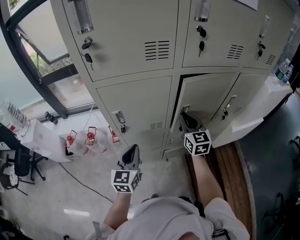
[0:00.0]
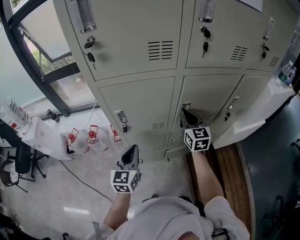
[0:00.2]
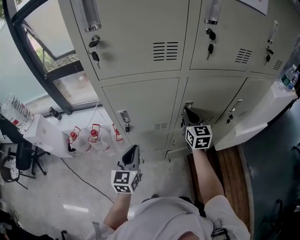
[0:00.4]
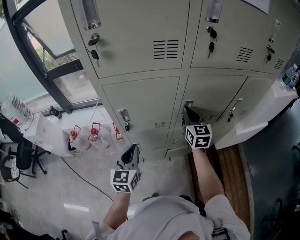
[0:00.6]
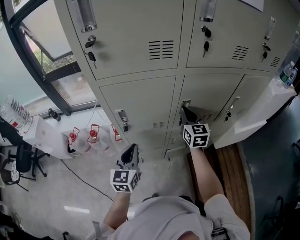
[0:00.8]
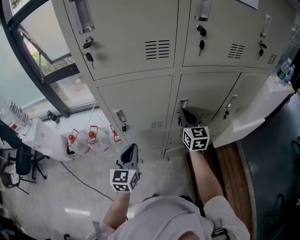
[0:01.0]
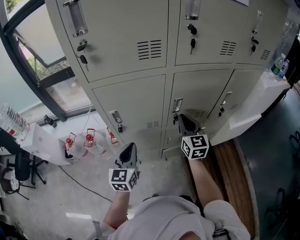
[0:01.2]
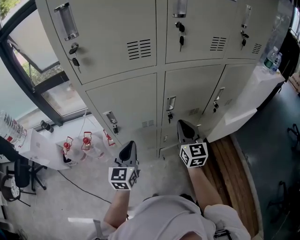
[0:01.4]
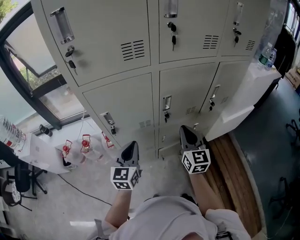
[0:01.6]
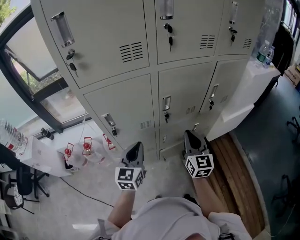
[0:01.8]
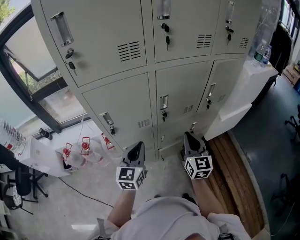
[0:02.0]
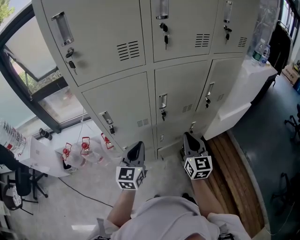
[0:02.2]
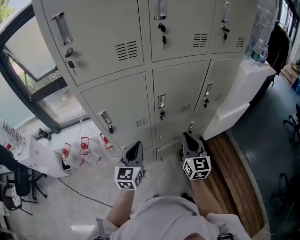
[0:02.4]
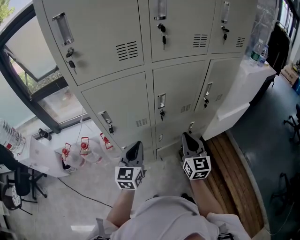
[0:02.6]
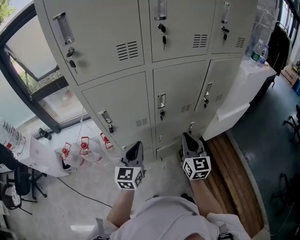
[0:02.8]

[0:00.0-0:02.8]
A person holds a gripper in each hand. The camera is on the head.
0:00.0 to 0:01.4: The right gripper shifts about 5 cm backward.
0:01.4 to 0:02.8: The left gripper moves to the right, some 5 cm, while the right gripper goes about 10 cm backward and to the right.

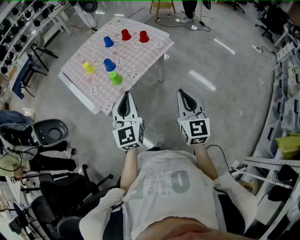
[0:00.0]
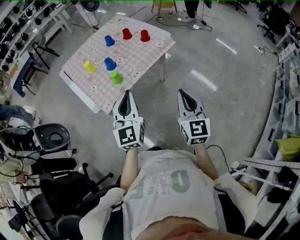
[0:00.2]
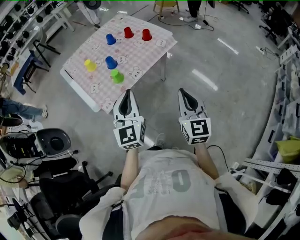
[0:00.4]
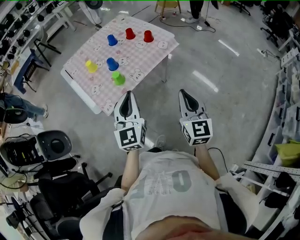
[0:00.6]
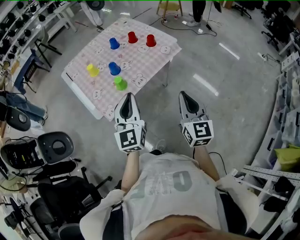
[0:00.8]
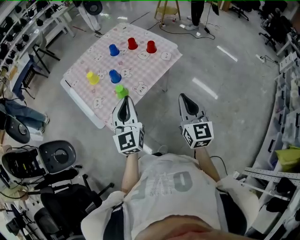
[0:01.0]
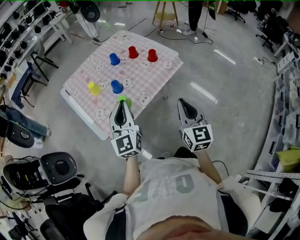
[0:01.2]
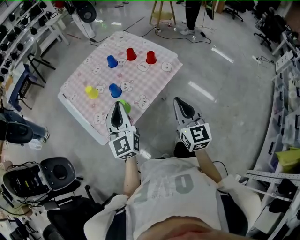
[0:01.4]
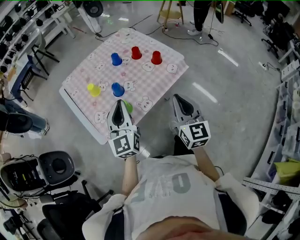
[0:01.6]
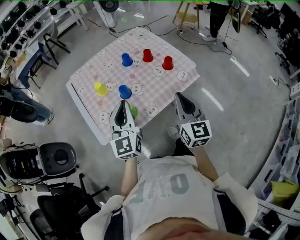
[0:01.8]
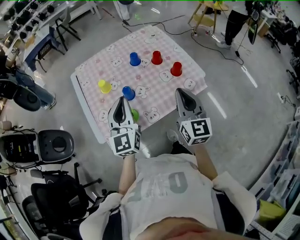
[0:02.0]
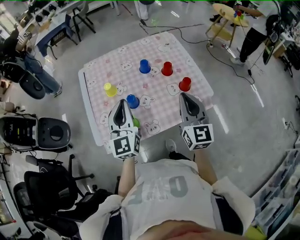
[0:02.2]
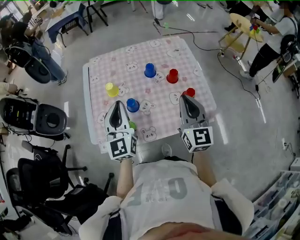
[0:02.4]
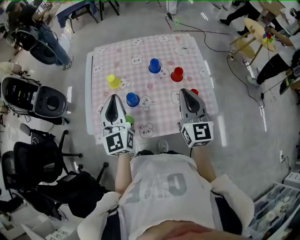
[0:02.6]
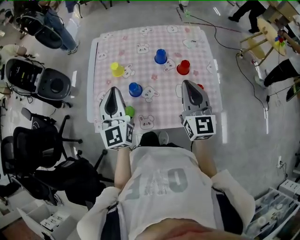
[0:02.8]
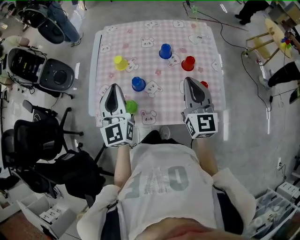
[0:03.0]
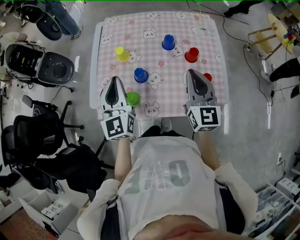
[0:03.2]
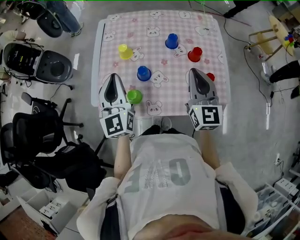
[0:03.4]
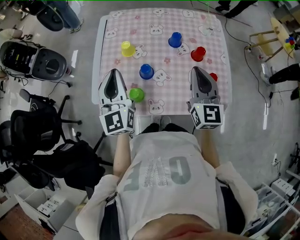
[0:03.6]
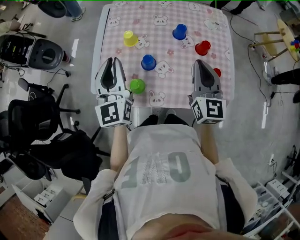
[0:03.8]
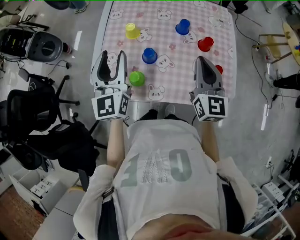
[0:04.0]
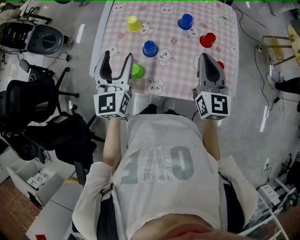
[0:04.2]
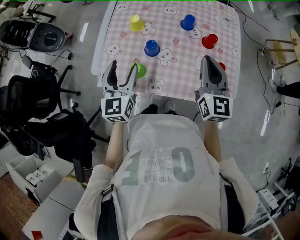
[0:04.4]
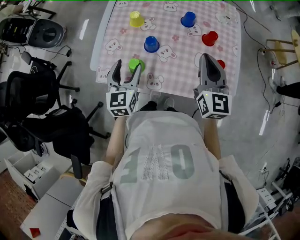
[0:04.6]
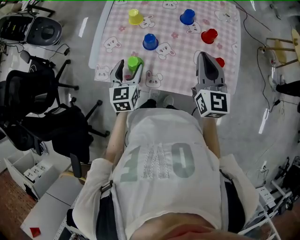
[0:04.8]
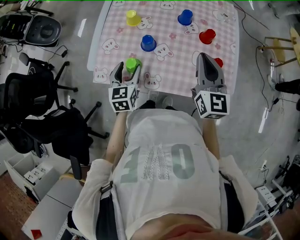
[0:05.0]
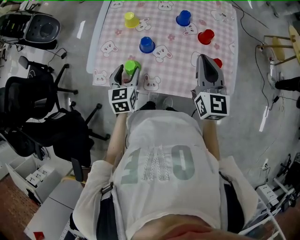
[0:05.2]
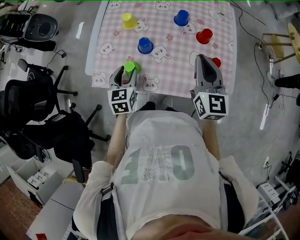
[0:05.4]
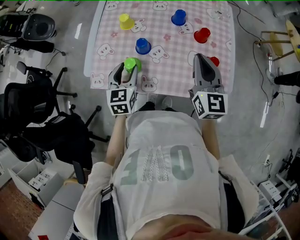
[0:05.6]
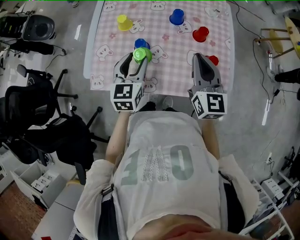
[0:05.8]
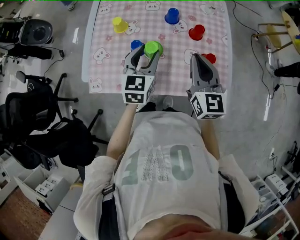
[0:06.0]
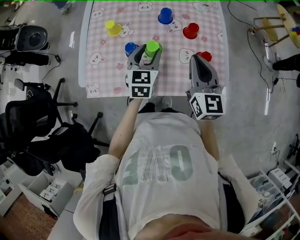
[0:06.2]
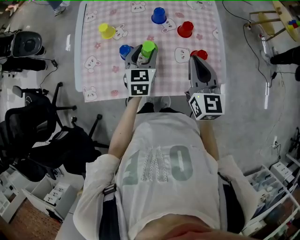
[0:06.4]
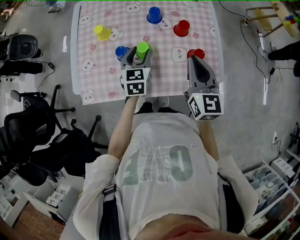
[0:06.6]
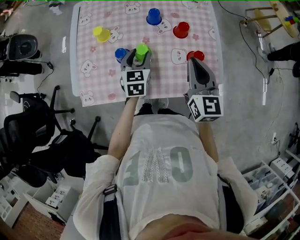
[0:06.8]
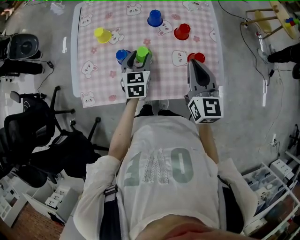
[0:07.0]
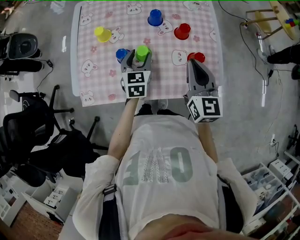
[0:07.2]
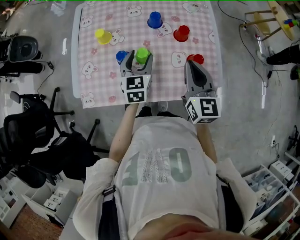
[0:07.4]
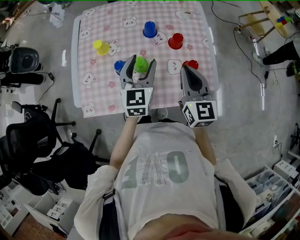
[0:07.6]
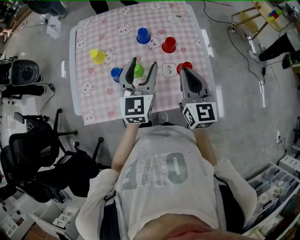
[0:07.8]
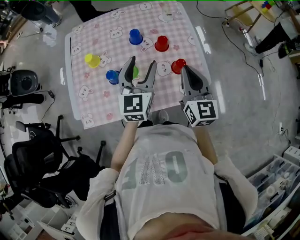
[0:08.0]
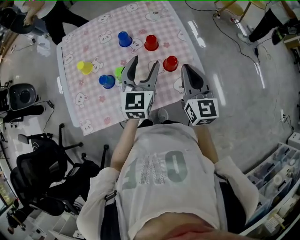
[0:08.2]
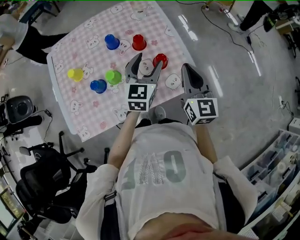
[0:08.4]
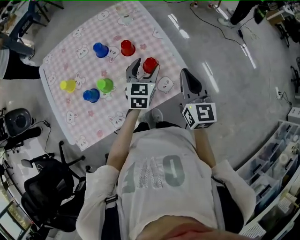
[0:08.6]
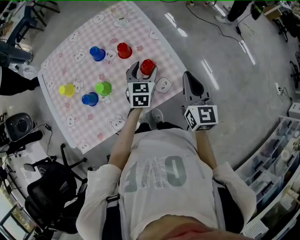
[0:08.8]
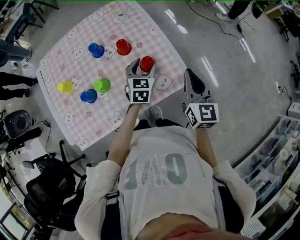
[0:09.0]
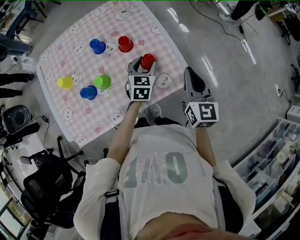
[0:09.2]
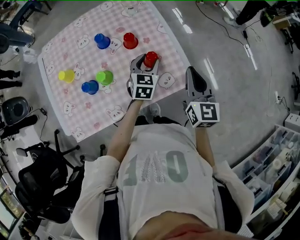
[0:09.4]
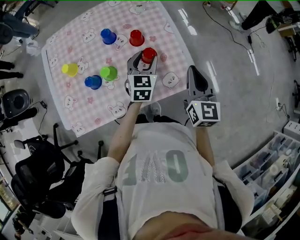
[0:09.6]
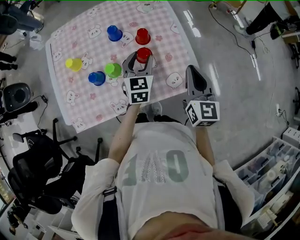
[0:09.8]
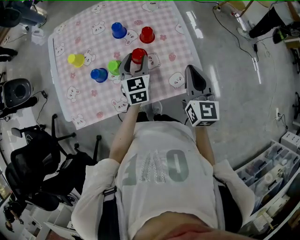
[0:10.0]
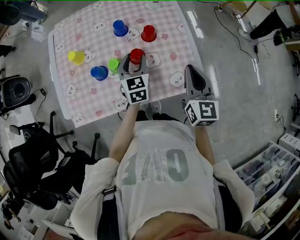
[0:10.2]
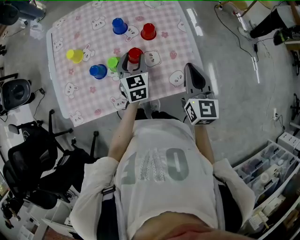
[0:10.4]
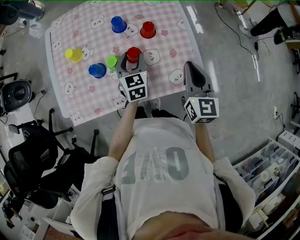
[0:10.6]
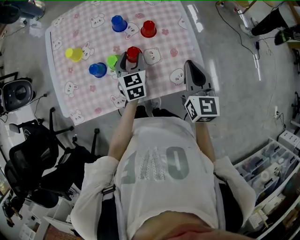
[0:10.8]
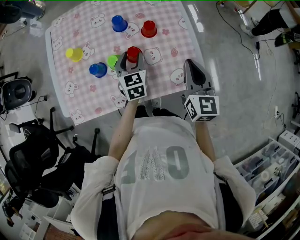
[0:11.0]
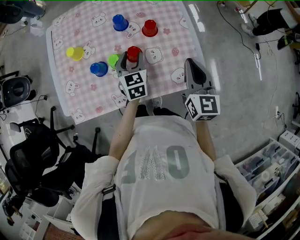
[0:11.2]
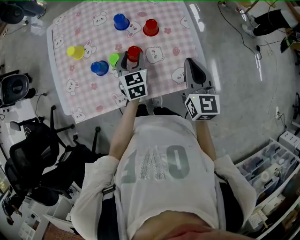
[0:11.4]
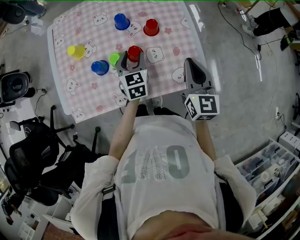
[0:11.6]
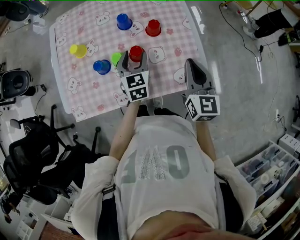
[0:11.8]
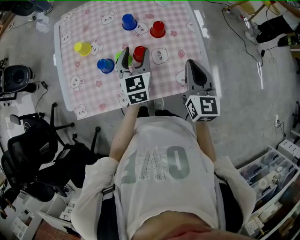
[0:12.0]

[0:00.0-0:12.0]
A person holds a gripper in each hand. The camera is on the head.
0:00.0 to 0:01.6: Both grippers move forward, about 20 cm.
0:01.6 to 0:03.0: The left gripper changes place by approximately 10 cm, and swivels some 40 degrees. Meanwhile the right gripper shifts by some 30 cm, and swivels roughly 40 degrees.
0:03.0 to 0:04.4: The left gripper moves downward, about 10 cm, and opens up.
0:04.4 to 0:06.0: The left gripper heads to the right and forward, covering approximately 15 cm.
0:06.0 to 0:07.6: The left gripper reaches approximately 10 cm downward, then returns.
0:07.6 to 0:09.0: The left gripper changes place by approximately 25 cm, and turns by roughly 30 degrees, while the right gripper shifts by some 20 cm, and swivels approximately 30 degrees.
0:09.0 to 0:10.4: The left gripper heads to the left, covering about 15 cm, and changes its angle by some 30 degrees. Meanwhile the right gripper goes roughly 10 cm to the left.
0:10.4 to 0:12.0: The left gripper travels upward by roughly 5 cm.

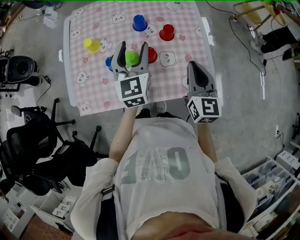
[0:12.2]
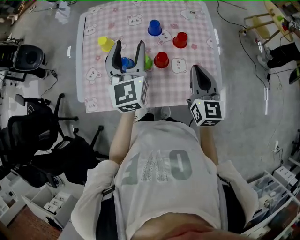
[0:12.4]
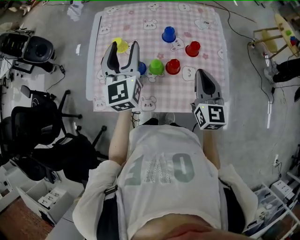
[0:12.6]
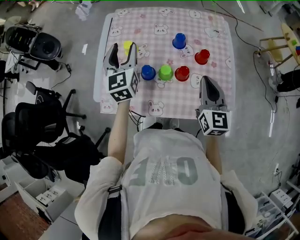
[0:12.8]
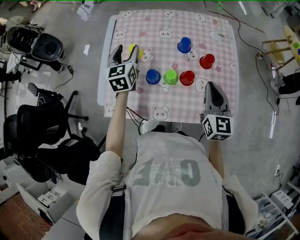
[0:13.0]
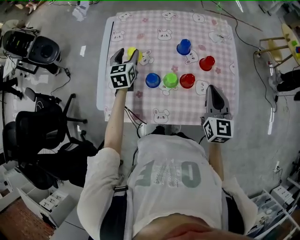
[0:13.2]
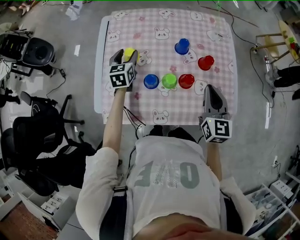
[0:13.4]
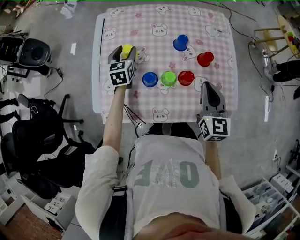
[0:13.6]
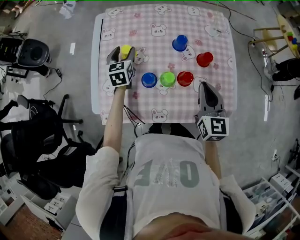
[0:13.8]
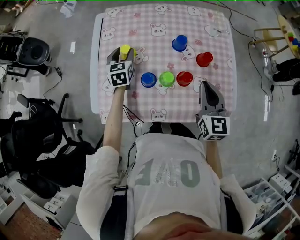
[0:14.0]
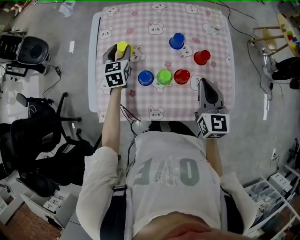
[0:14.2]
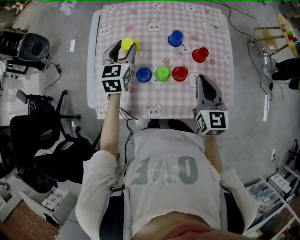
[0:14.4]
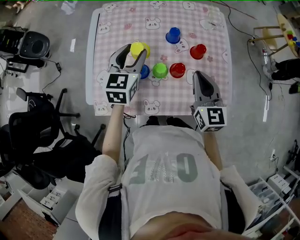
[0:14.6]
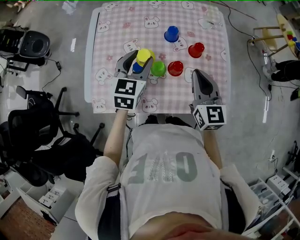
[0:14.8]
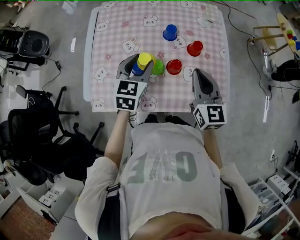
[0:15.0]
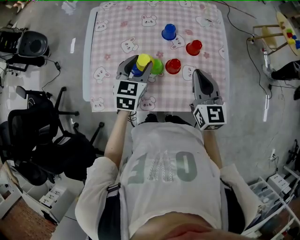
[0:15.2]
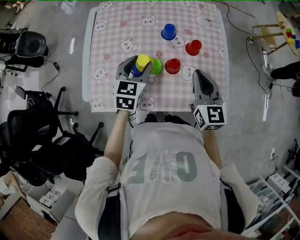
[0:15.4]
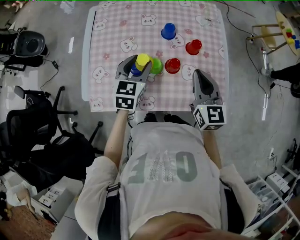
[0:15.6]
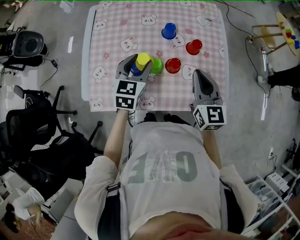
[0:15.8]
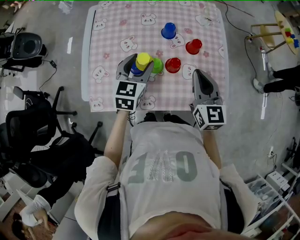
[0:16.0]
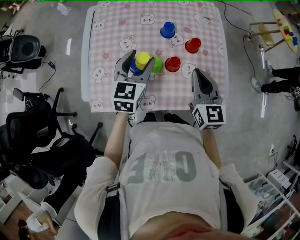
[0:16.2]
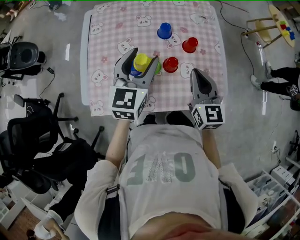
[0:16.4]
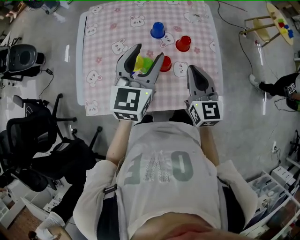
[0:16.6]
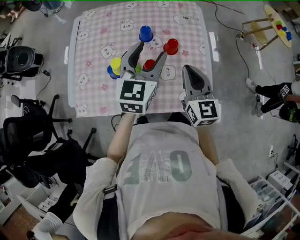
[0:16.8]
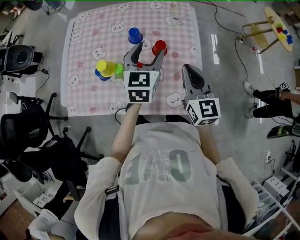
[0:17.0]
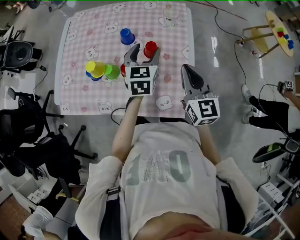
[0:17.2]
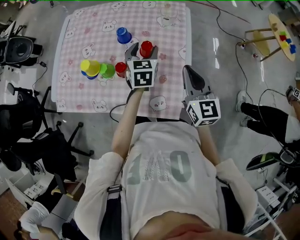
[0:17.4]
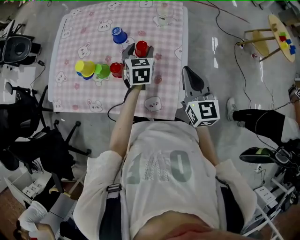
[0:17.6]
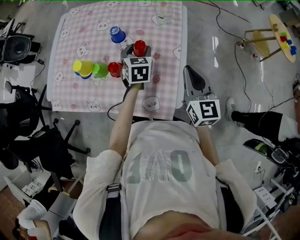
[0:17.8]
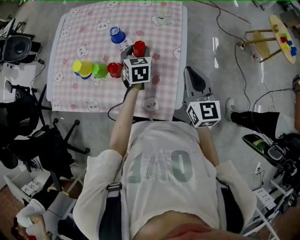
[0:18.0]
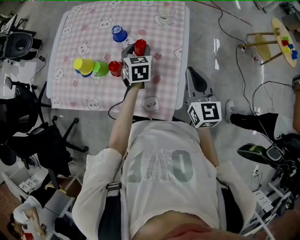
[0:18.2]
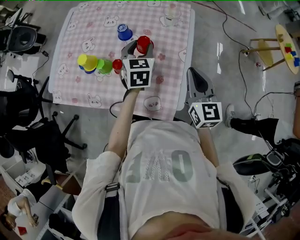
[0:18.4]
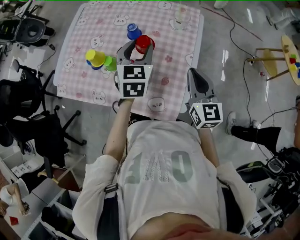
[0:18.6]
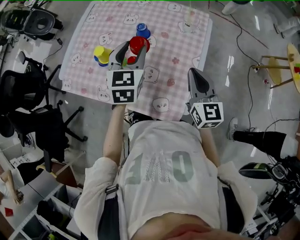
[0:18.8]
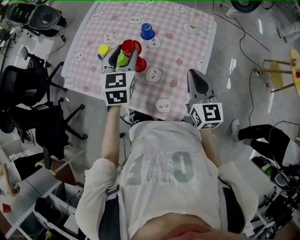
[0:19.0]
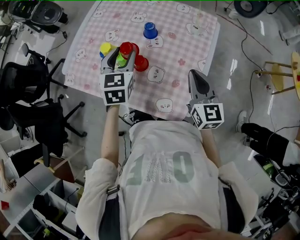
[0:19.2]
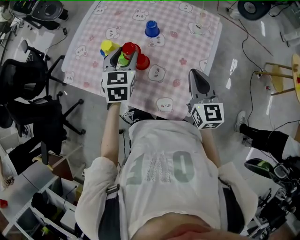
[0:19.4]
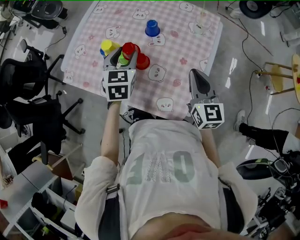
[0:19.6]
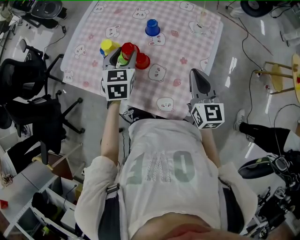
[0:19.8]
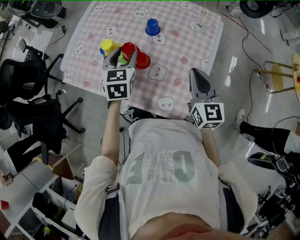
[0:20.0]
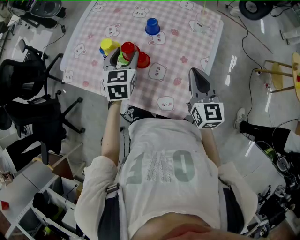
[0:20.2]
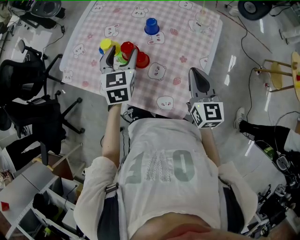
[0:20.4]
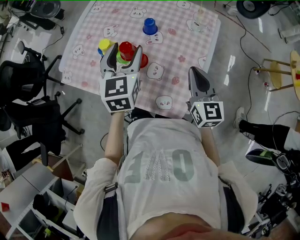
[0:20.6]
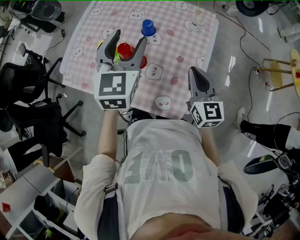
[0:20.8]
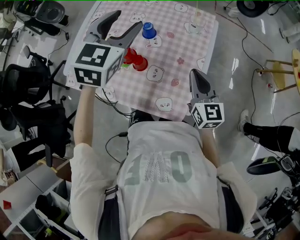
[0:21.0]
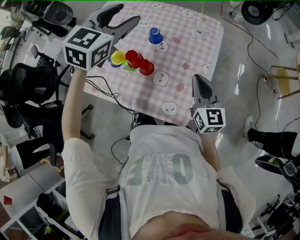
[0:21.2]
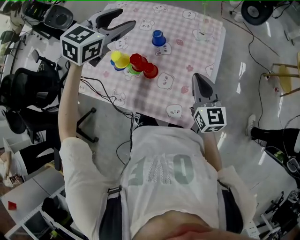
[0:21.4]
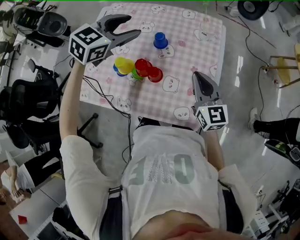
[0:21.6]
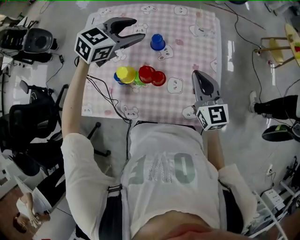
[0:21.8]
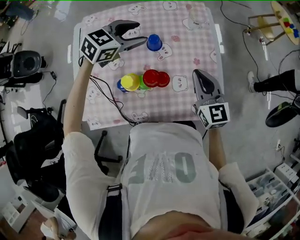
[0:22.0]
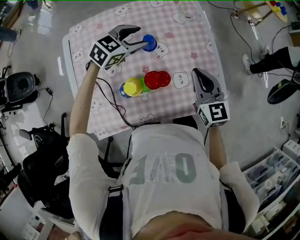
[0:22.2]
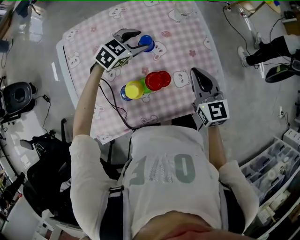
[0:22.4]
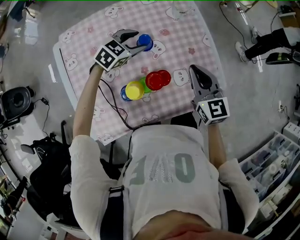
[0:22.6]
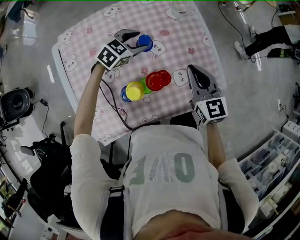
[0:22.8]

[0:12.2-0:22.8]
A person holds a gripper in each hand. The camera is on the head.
0:12.2 to 0:13.8: The left gripper shifts roughly 30 cm to the left, forward and downward, and changes its angle by roughly 20 degrees. The right gripper is displaced to the left and forward by some 10 cm.
0:13.8 to 0:15.2: The left gripper heads to the right, backward and upward, covering approximately 20 cm.
0:15.2 to 0:16.8: The right gripper goes roughly 5 cm to the right. The left gripper travels to the right and upward by about 15 cm.
0:16.8 to 0:18.2: The left gripper goes roughly 20 cm downward, to the right and forward, and rotates approximately 40 degrees. The right gripper shifts approximately 20 cm to the right.
0:18.2 to 0:19.8: The left gripper travels to the left and upward by some 20 cm. Meanwhile the right gripper goes about 10 cm to the left.
0:19.8 to 0:21.2: The left gripper is displaced upward by roughly 20 cm, and turns by some 30 degrees.
0:21.2 to 0:22.8: The left gripper moves downward, some 30 cm, and rotates some 60 degrees, while the right gripper ends up approximately 15 cm from where it was, and turns by about 30 degrees.
